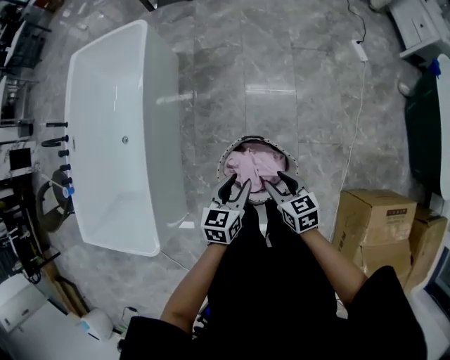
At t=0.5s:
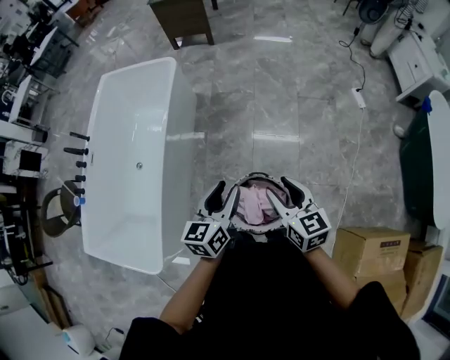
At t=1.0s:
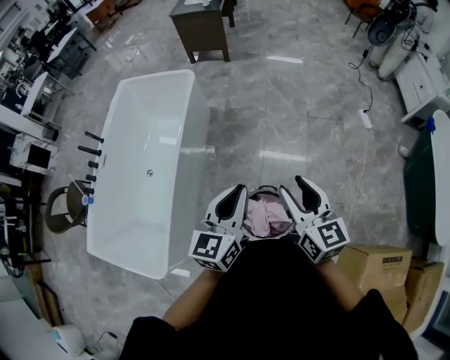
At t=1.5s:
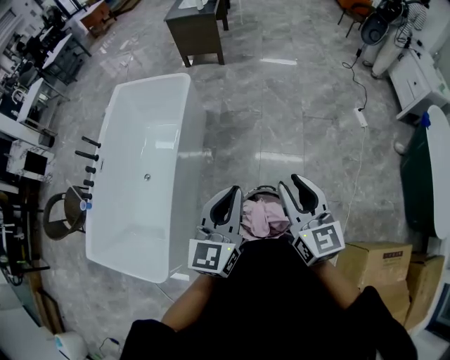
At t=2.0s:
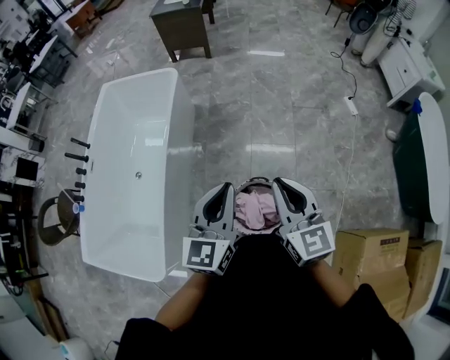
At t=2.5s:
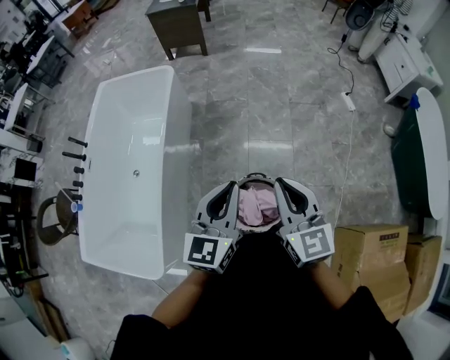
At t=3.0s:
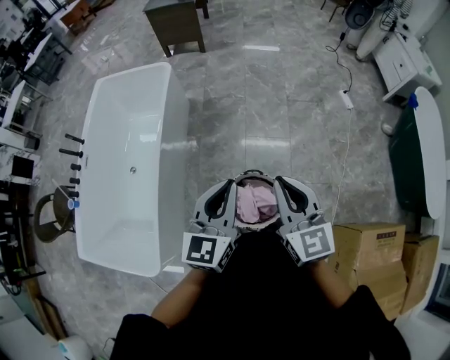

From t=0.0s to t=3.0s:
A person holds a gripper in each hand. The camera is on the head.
From t=0.0s to t=1.5s: Both grippers travel together upward, about 30 cm. The right gripper tilts its fingers about 30 degrees upward. The left gripper swivels some 40 degrees, and closes its fingers.
From t=1.5s to t=3.0s: The right gripper closes.

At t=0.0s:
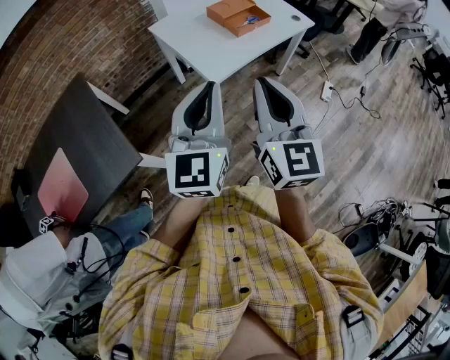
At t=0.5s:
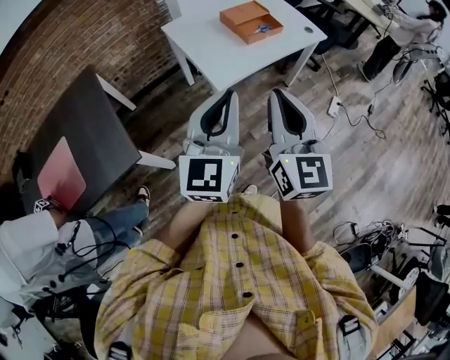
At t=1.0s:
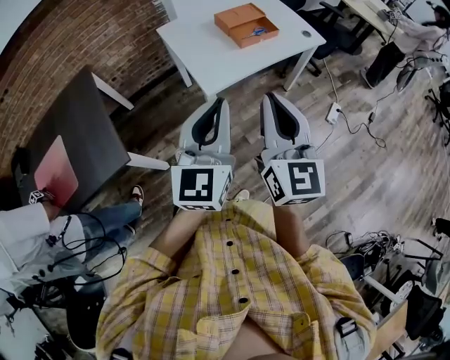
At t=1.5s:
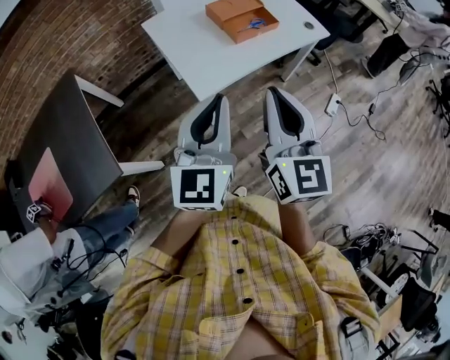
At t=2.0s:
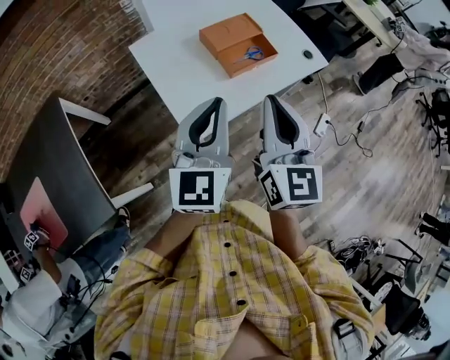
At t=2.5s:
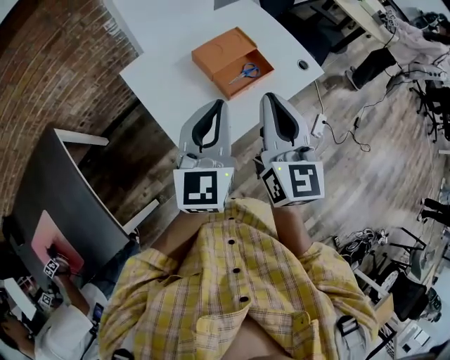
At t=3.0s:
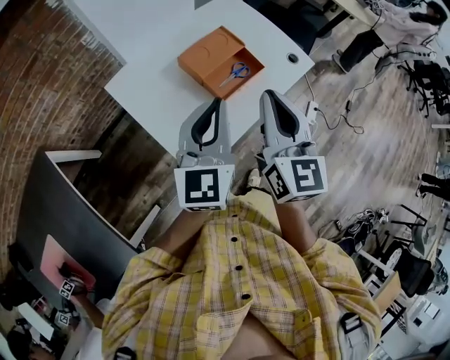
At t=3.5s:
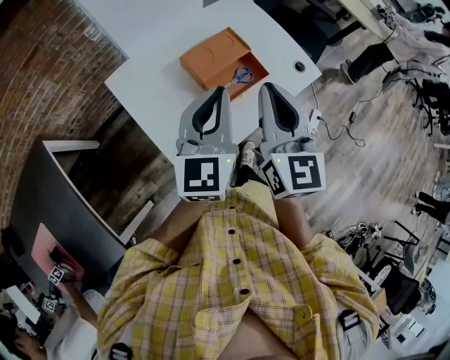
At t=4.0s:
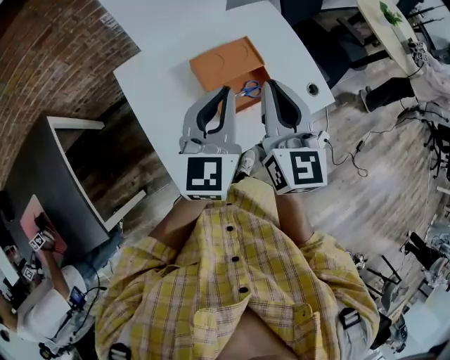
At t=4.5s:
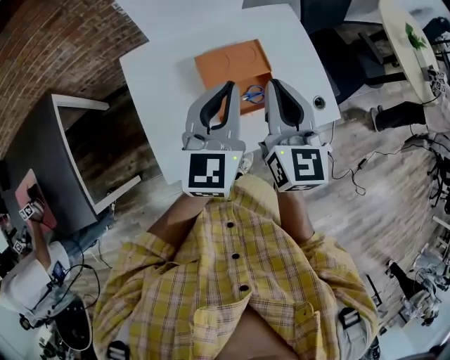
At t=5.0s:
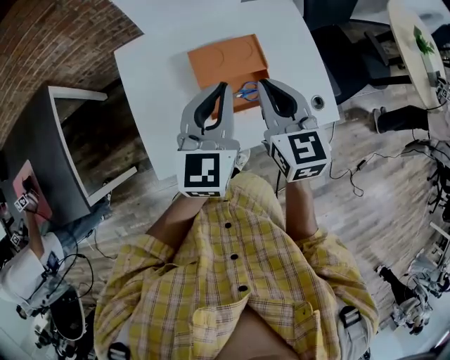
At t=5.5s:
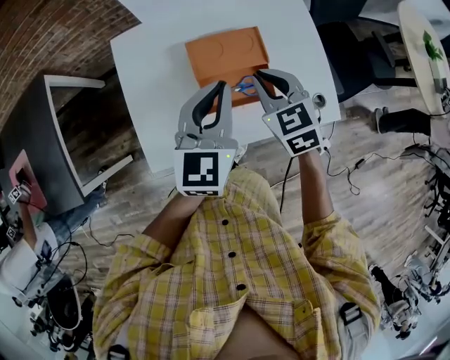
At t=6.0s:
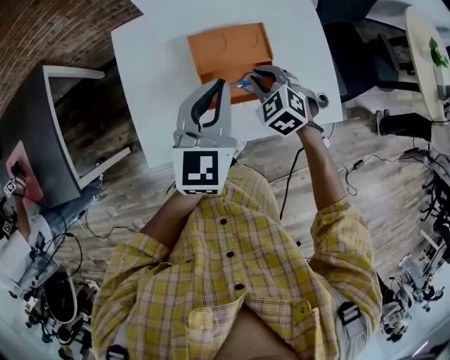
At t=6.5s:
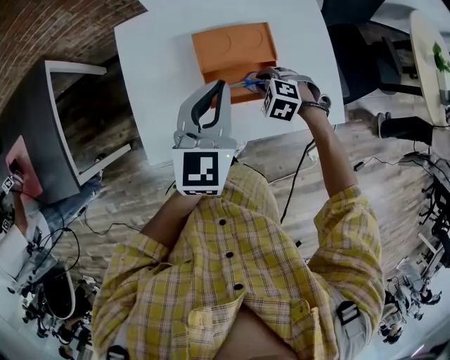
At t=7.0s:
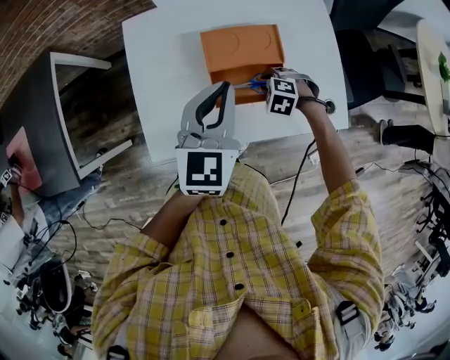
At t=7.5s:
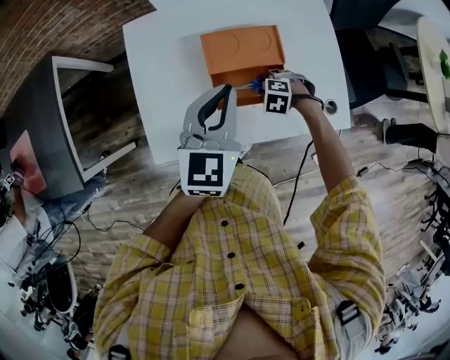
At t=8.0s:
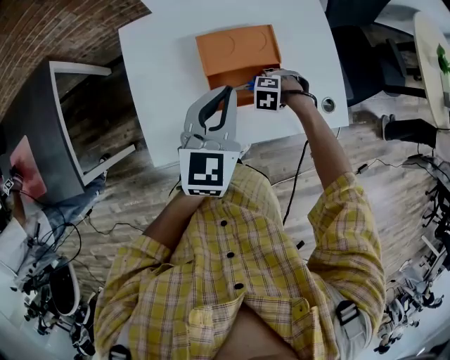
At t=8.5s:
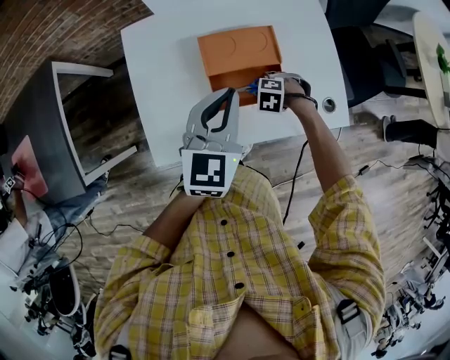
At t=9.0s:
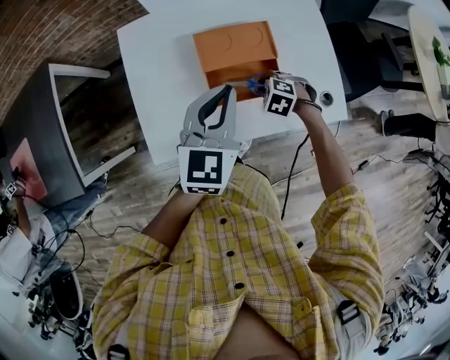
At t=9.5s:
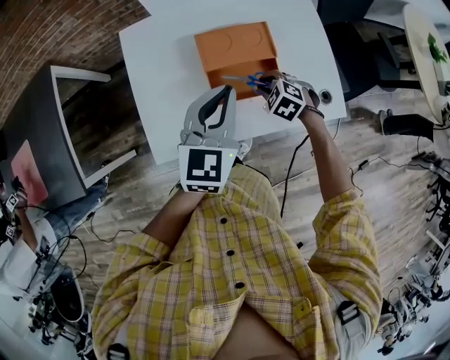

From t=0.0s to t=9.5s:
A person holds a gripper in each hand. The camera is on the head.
From t=0.0s to t=2.0s: Both grippers travel together forward, roughly 30 cm.
From t=2.0s to t=4.0s: Both grippers travel together forward, approximately 25 cm.
From t=4.0s to t=5.5s: The right gripper shifts approximately 20 cm downward and forward, and angles its fingers downward, by roughly 30 degrees. The left gripper moves downward, roughly 5 cm.
From t=5.5s to t=7.5s: The right gripper goes roughly 25 cm downward, points its fingers approximately 40 degrees further downward, and opens up.
From t=7.5s to t=9.5s: The right gripper shifts about 5 cm upward, and turns by about 20 degrees.

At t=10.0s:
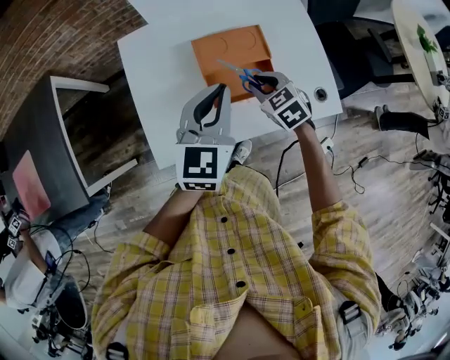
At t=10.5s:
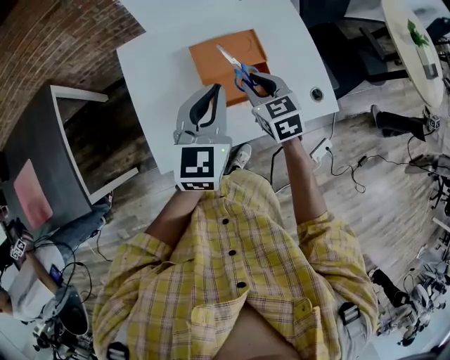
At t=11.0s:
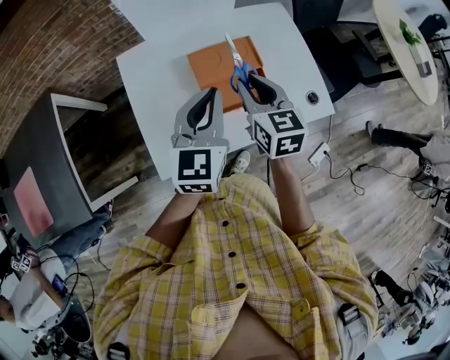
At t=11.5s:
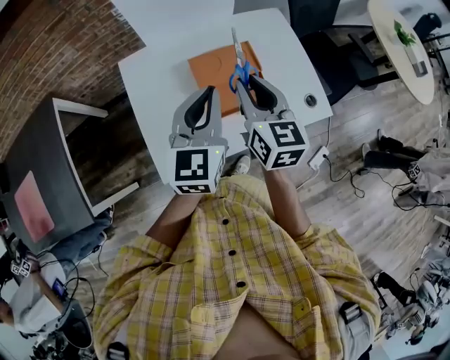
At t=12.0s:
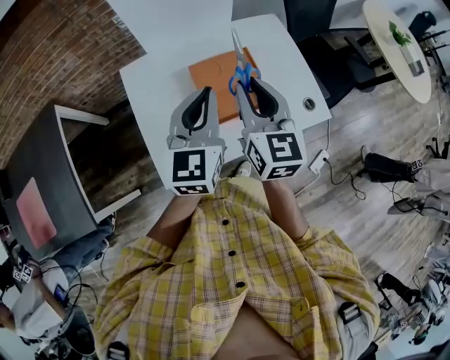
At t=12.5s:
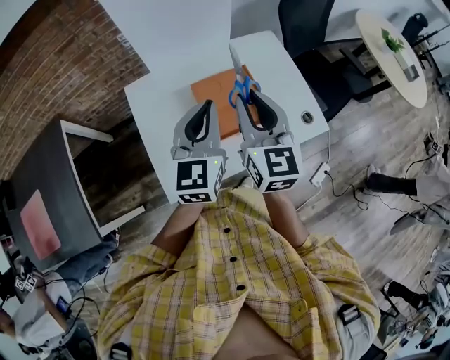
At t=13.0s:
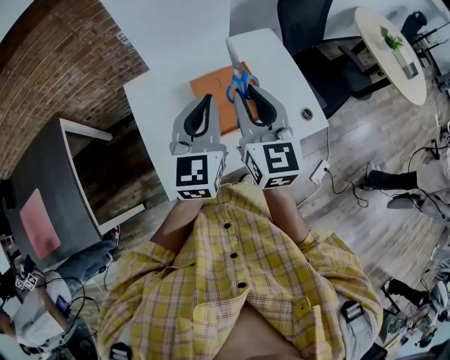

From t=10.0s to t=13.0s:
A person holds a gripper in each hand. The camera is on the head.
From t=10.0s to t=11.5s: The left gripper changes place by some 5 cm; the right gripper shifts roughly 20 cm upward, and points its fingers roughly 30 degrees further upward.
From t=11.5s to t=13.0s: The right gripper goes about 5 cm upward.

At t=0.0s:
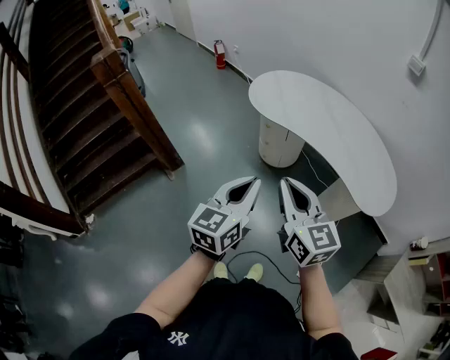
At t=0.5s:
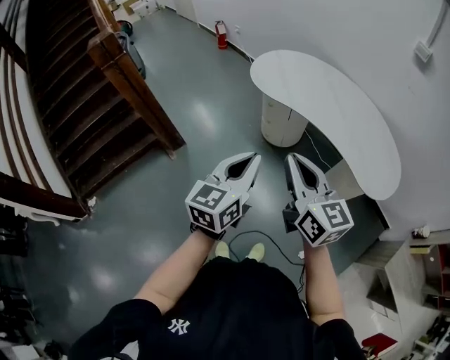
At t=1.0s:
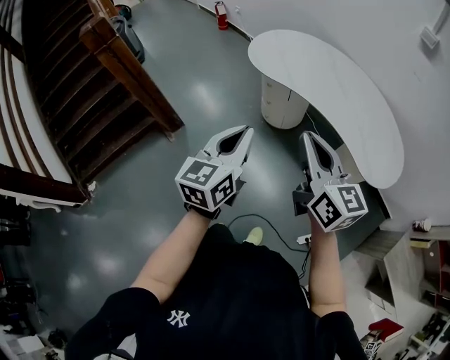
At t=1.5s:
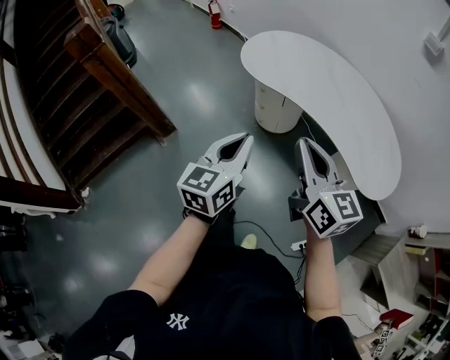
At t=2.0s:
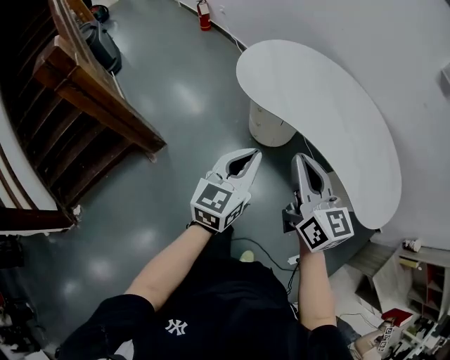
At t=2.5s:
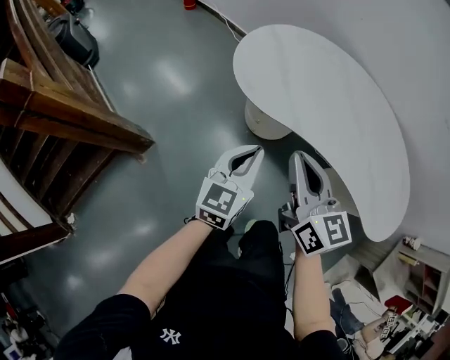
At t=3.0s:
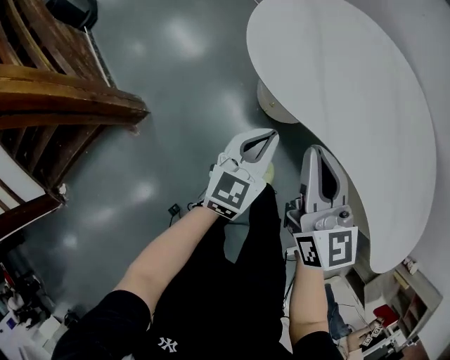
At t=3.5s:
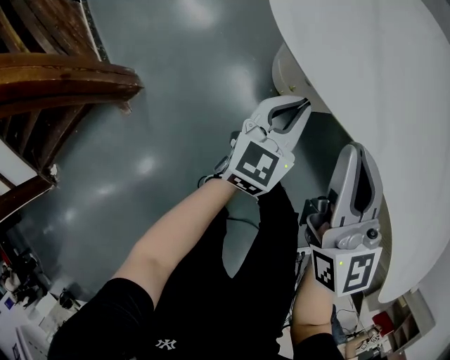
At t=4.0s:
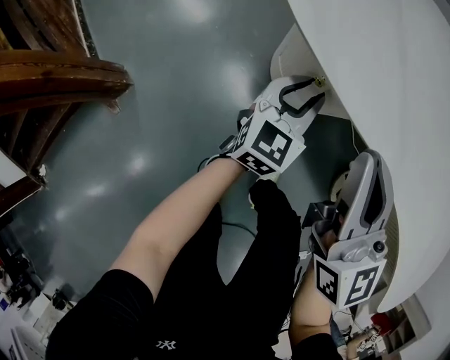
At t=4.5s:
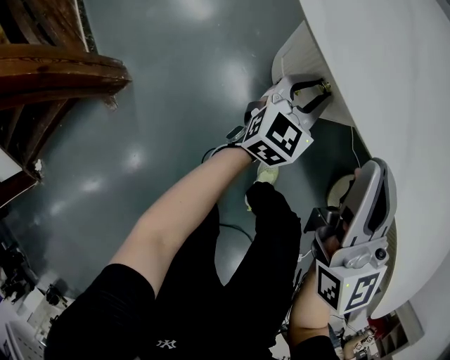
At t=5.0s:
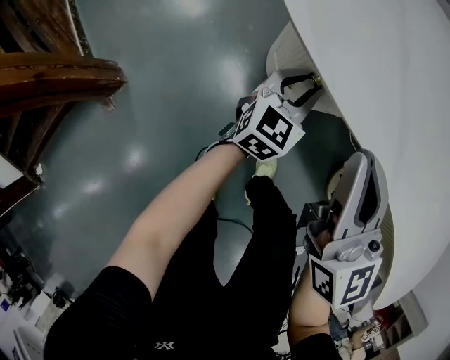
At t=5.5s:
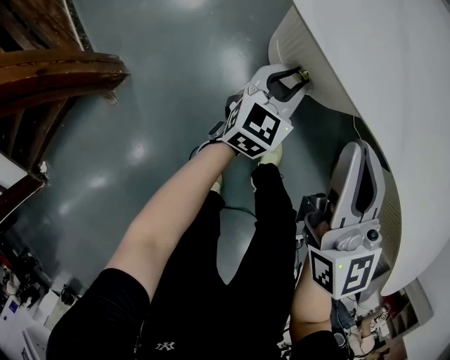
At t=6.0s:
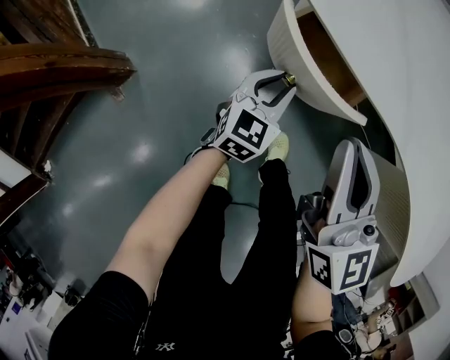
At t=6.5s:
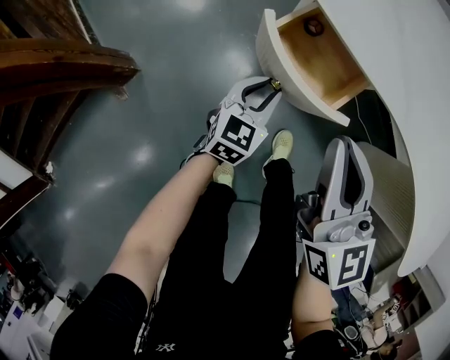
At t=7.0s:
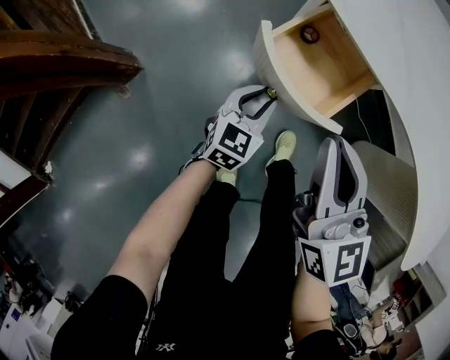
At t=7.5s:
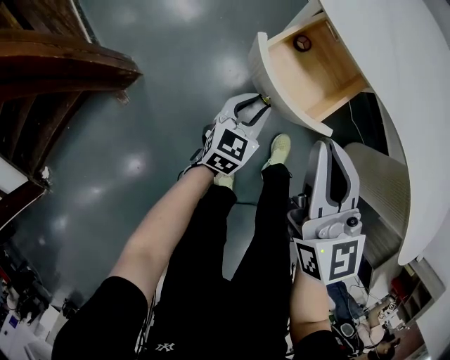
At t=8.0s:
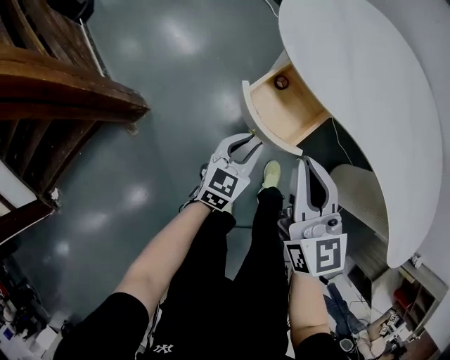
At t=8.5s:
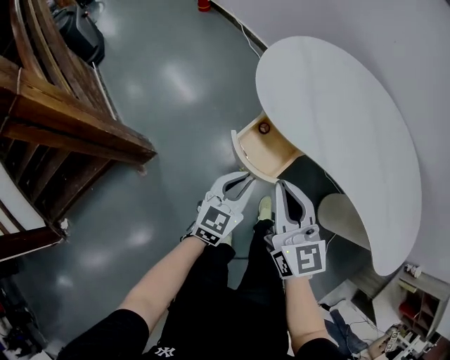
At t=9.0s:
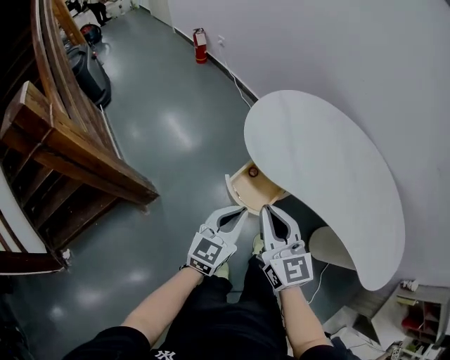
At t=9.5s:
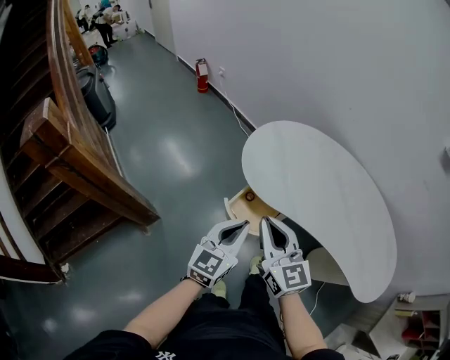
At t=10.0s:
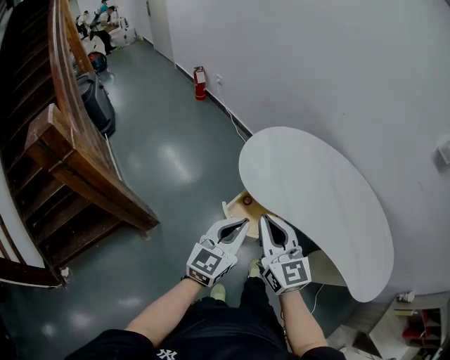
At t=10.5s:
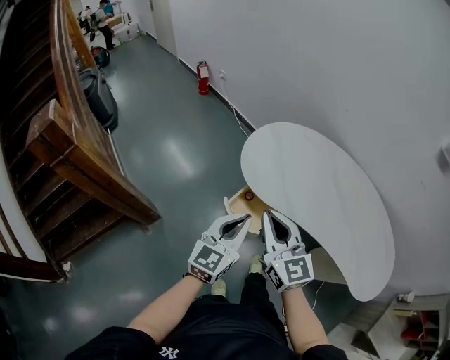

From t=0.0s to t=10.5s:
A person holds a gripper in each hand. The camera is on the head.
From t=0.0s to t=2.0s: The grippers both shift forward by about 25 cm.
From t=2.0s to t=4.0s: The two grippers go roughly 60 cm downward and forward. The left gripper opens up.
From t=4.0s to t=6.5s: The left gripper shifts about 15 cm backward and to the left, while the right gripper goes roughly 10 cm backward.
From t=6.5s to t=8.5s: The right gripper heads upward, covering roughly 15 cm; the left gripper is displaced upward by about 25 cm.
From t=8.5s to t=10.5s: The two grippers go about 20 cm upward.
